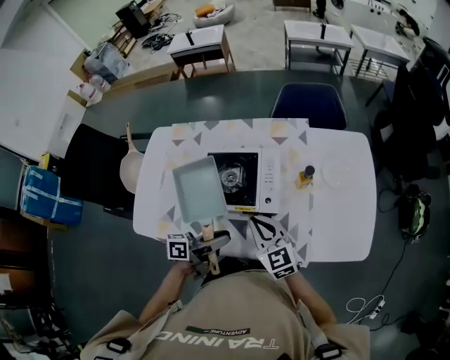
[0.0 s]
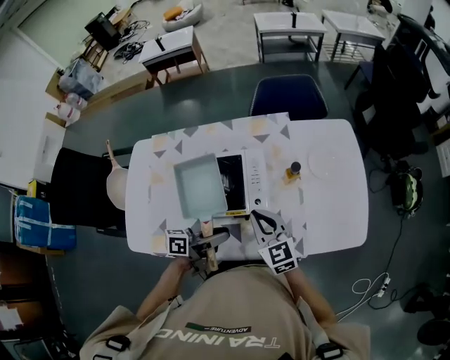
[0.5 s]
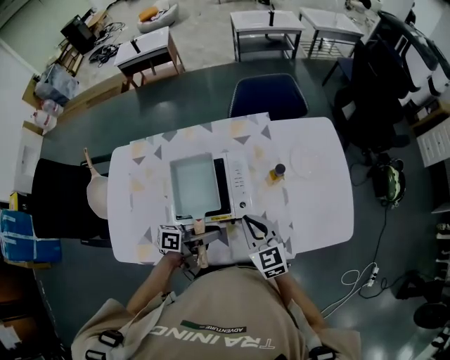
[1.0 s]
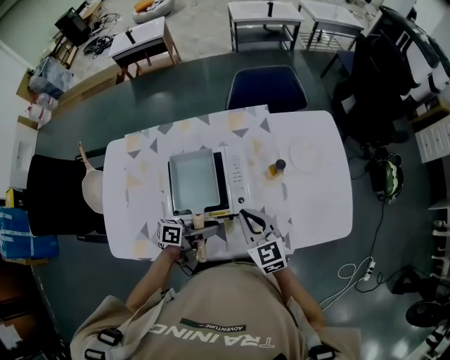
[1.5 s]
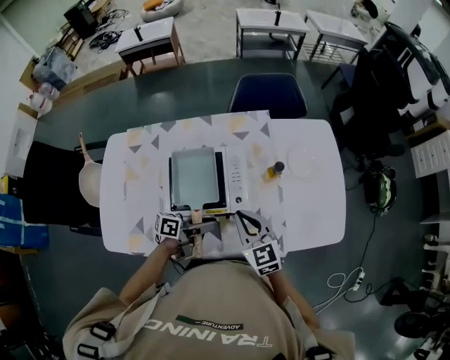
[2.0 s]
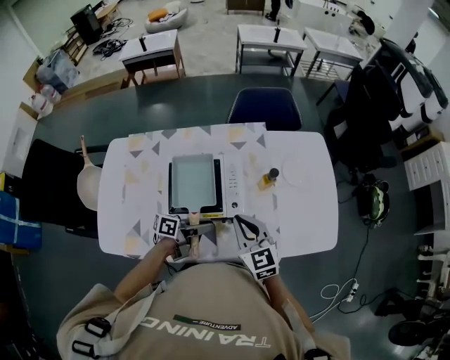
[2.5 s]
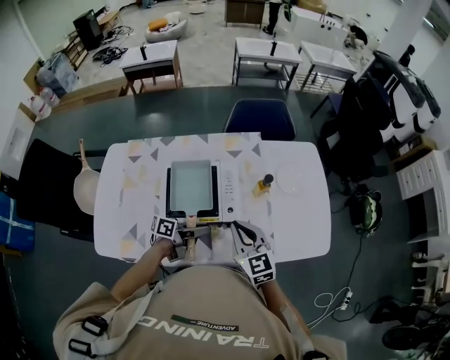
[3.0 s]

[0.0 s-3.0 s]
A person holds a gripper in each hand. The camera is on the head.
0.0 to 1.5 s: The left gripper moves downward and forward, some 10 cm, and turns by roughly 20 degrees. Meanwhile the right gripper ends up about 5 cm from where it was.
1.5 to 3.0 s: The right gripper changes place by about 5 cm.

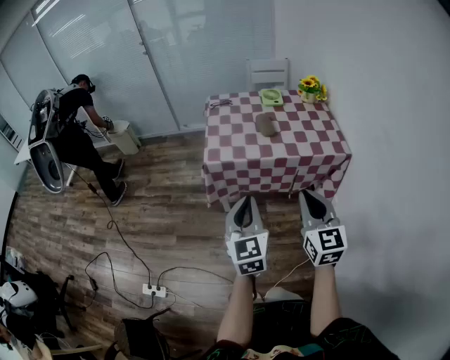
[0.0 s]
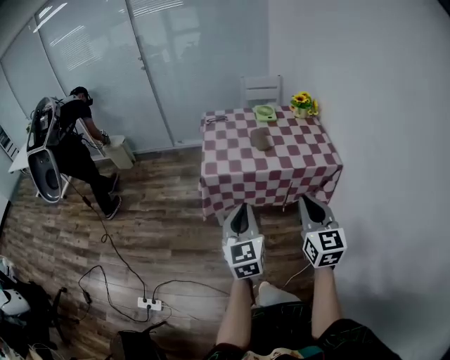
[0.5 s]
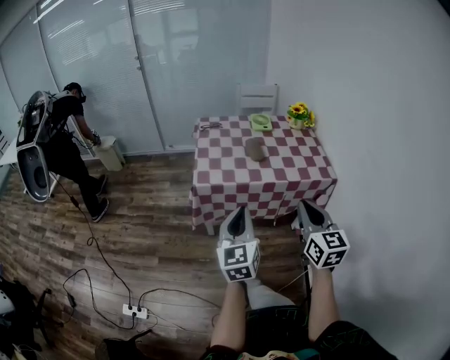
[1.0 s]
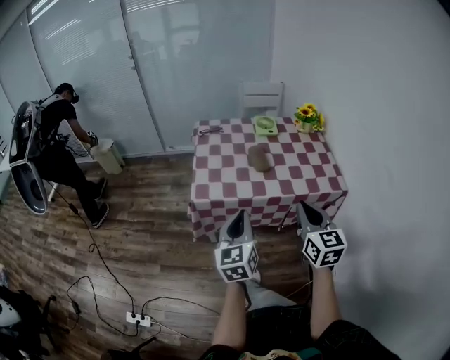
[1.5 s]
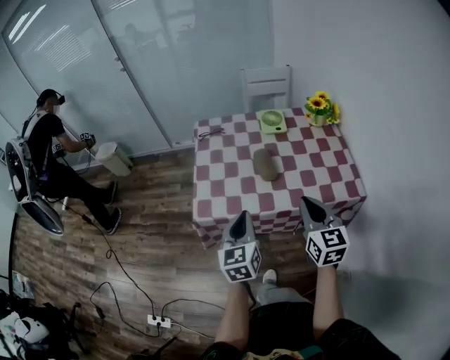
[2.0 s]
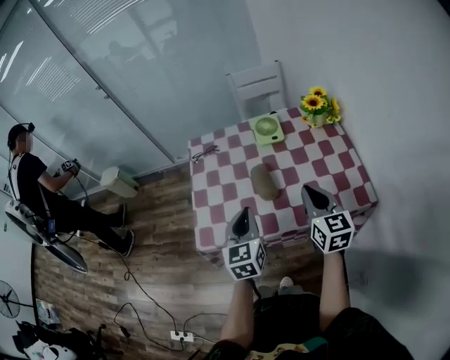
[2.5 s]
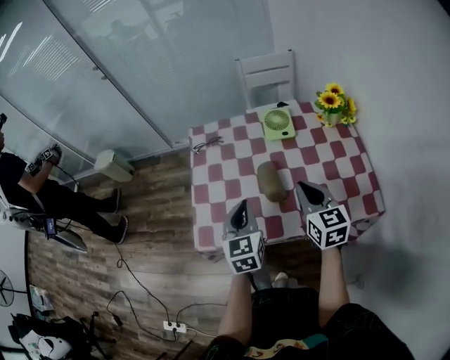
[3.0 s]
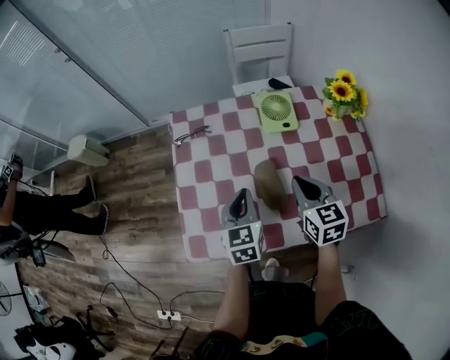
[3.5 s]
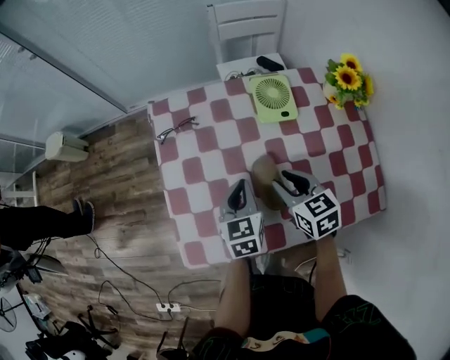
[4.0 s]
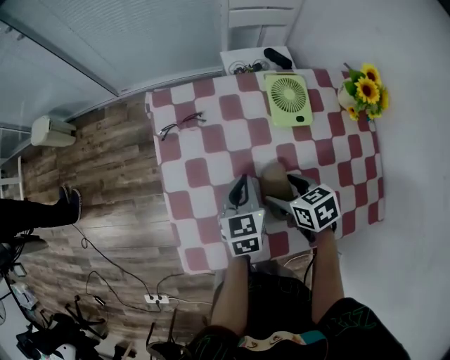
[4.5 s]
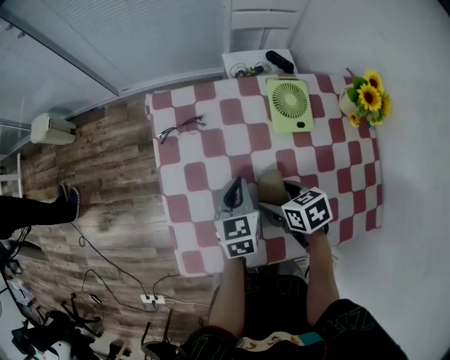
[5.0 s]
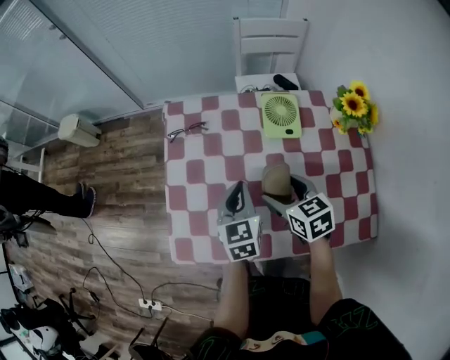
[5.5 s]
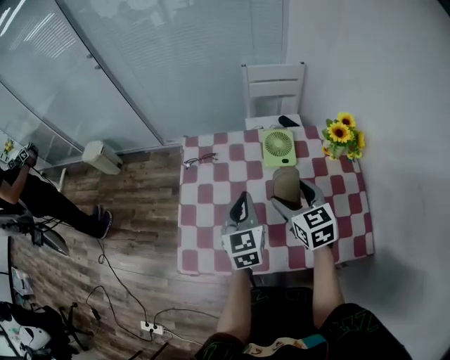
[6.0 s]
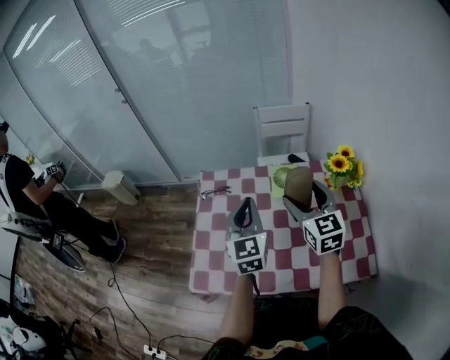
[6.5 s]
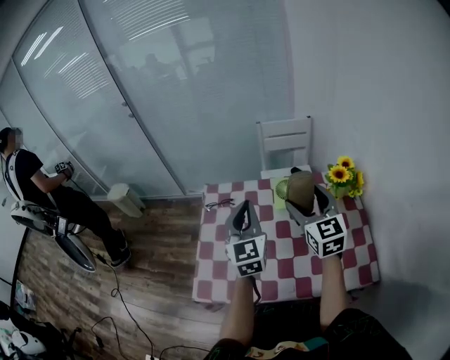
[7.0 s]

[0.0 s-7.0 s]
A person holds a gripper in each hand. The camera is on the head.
0.0 to 2.0 s: The two grippers go some 25 cm forward.
2.0 to 3.5 s: The right gripper heads forward and downward, covering roughly 25 cm, while the left gripper travels forward by approximately 25 cm.
3.5 to 5.0 s: The right gripper shifts approximately 15 cm downward and to the left, changes its angle by some 40 degrees, and opens its fingers. Meanwhile the left gripper is displaced forward and downward by some 10 cm.
5.0 to 7.0 s: The grippers both shift upward by some 30 cm. The right gripper tips its fingers upward by some 50 degrees. Meanwhile the left gripper angles its fingers upward, by roughly 30 degrees.

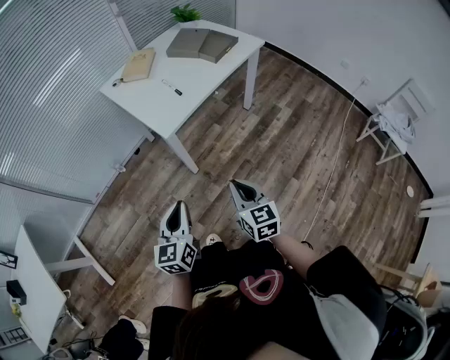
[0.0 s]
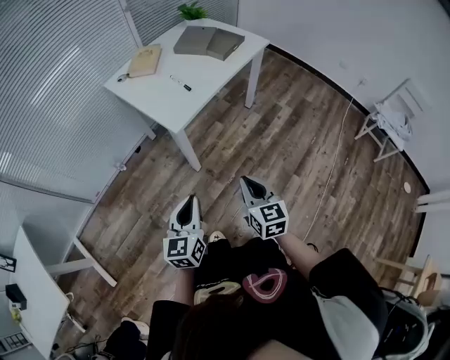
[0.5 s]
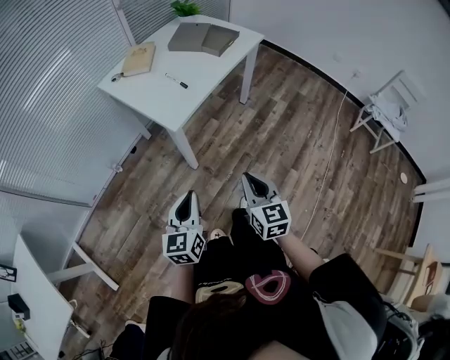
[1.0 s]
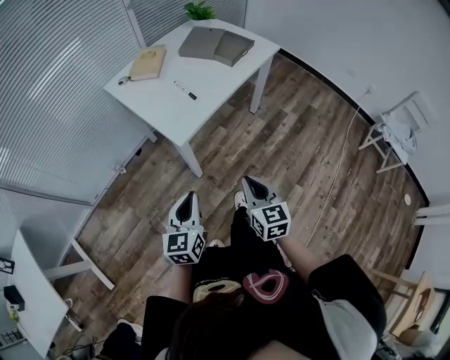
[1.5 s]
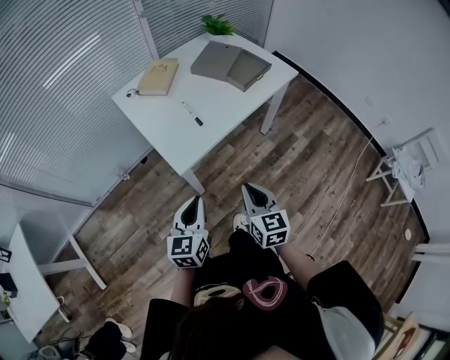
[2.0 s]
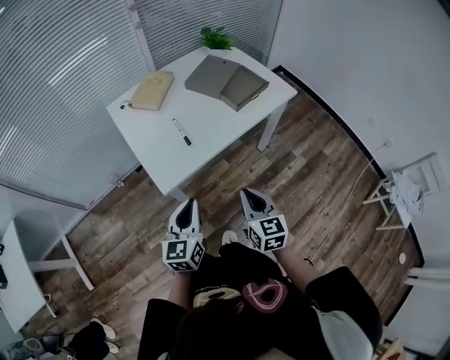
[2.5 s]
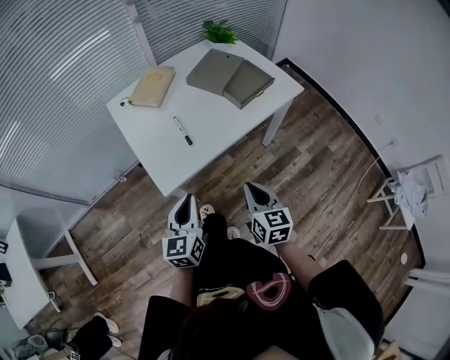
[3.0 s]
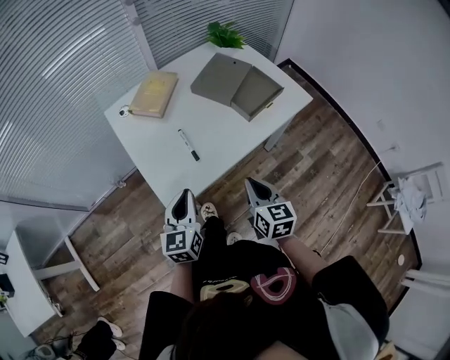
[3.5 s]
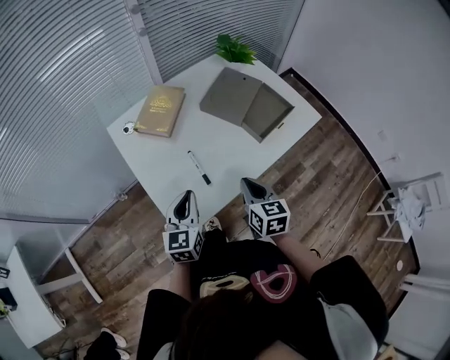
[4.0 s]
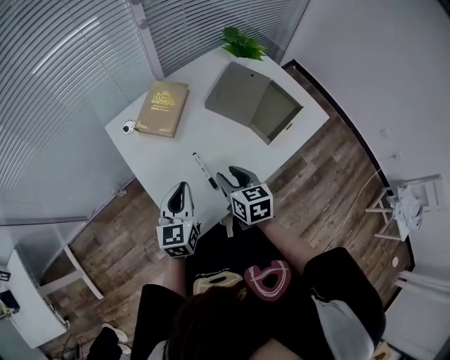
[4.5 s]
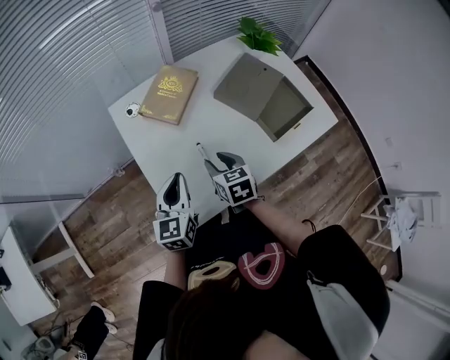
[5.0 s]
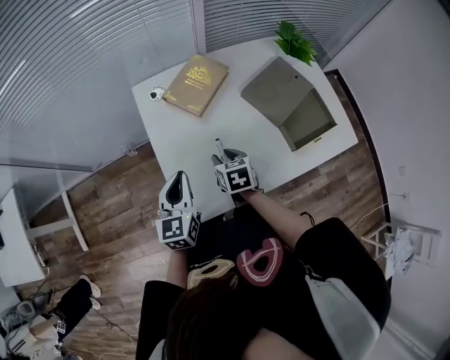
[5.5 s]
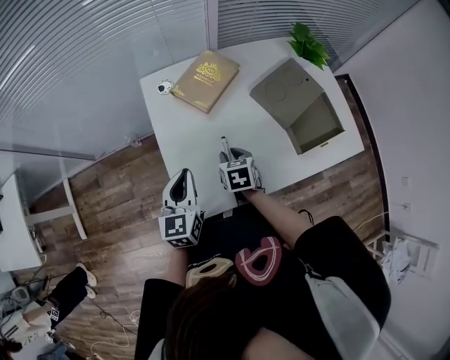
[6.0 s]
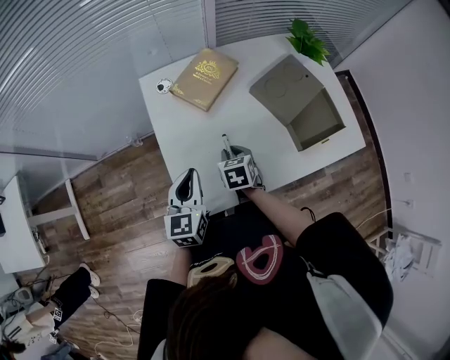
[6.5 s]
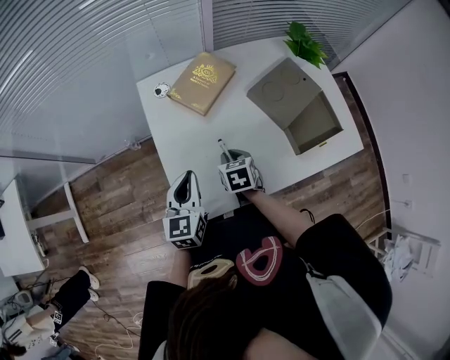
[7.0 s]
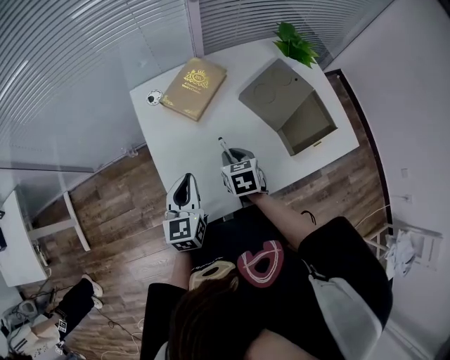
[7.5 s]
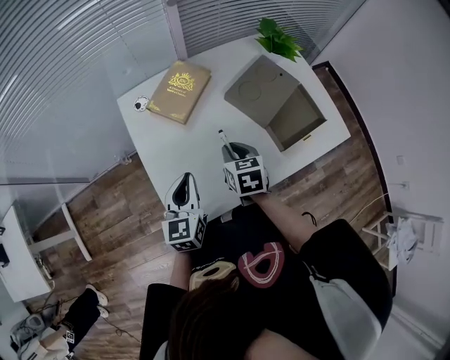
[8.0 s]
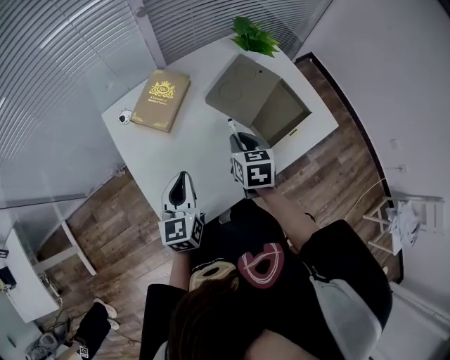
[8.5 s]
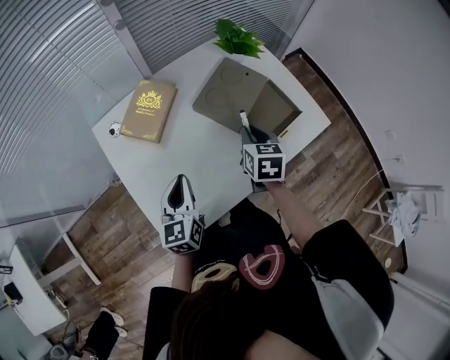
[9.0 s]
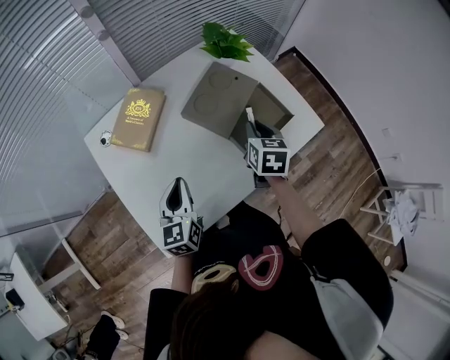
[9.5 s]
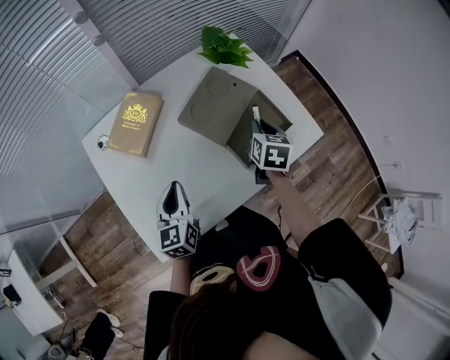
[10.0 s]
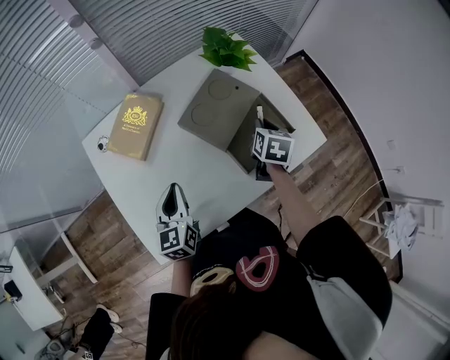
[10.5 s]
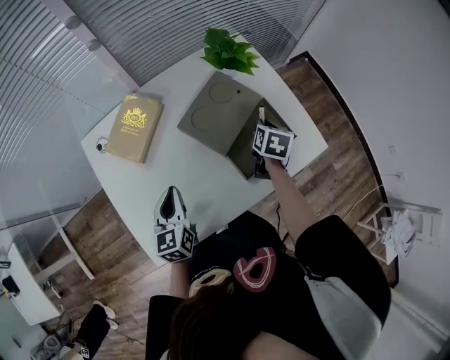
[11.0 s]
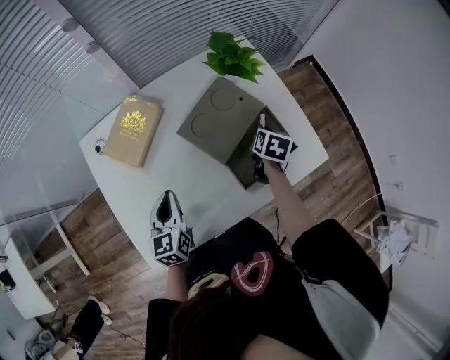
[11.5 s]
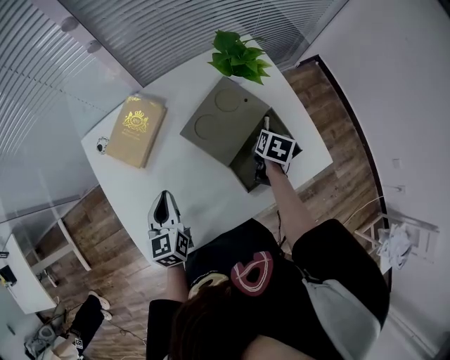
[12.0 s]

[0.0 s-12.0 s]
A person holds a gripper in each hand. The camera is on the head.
0.0 to 2.0 s: Both grippers travel together forward, roughly 20 cm.
2.0 to 4.0 s: Both grippers travel together forward, about 30 cm.
4.0 to 6.0 s: The left gripper is displaced to the left and forward by roughly 10 cm, and changes its angle by about 20 degrees. The right gripper goes some 20 cm forward, to the left and downward, swivels approximately 30 degrees, and opens its fingers.
6.0 to 8.0 s: The right gripper moves upward and to the right, roughly 10 cm. Meanwhile the left gripper goes about 5 cm to the right.
8.0 to 10.0 s: The right gripper travels to the right and forward by roughly 25 cm, and turns by some 30 degrees. Meanwhile the left gripper shifts roughly 10 cm to the right and forward.
10.0 to 12.0 s: The right gripper is displaced downward and forward by approximately 10 cm.

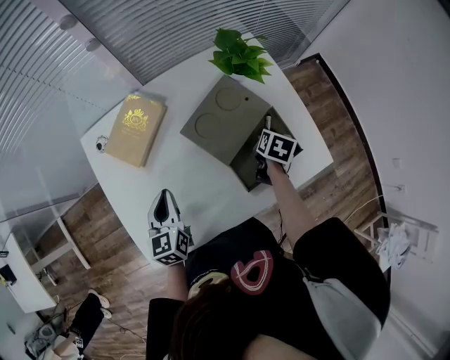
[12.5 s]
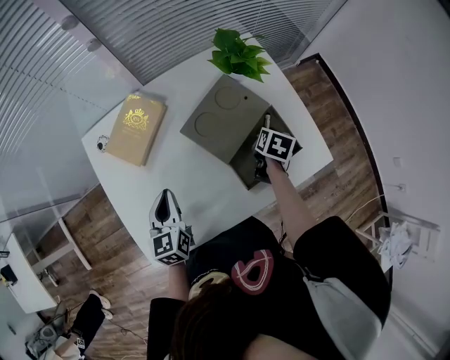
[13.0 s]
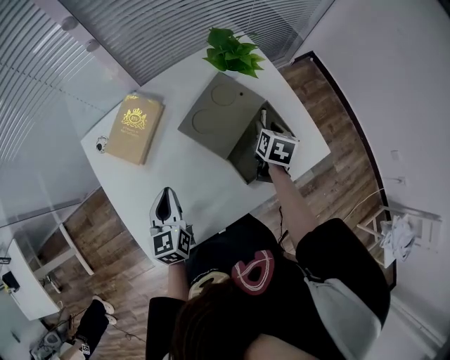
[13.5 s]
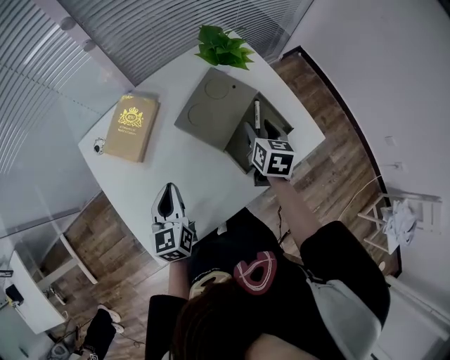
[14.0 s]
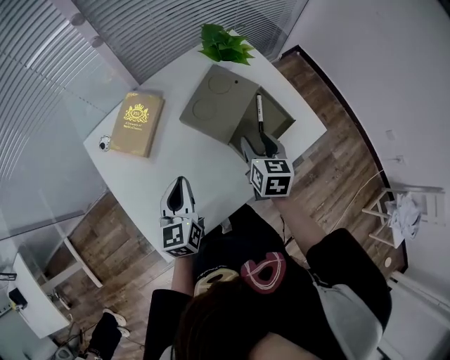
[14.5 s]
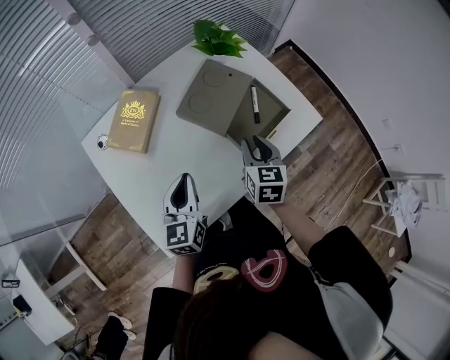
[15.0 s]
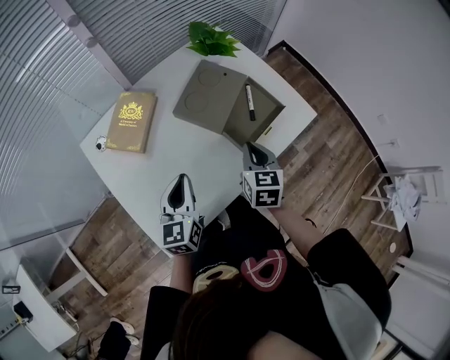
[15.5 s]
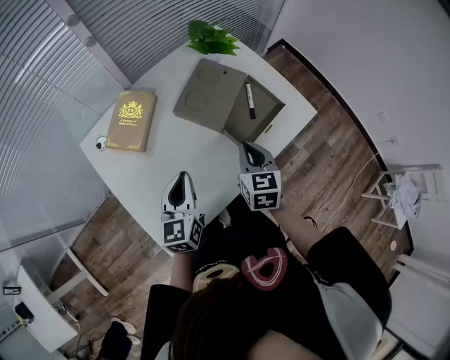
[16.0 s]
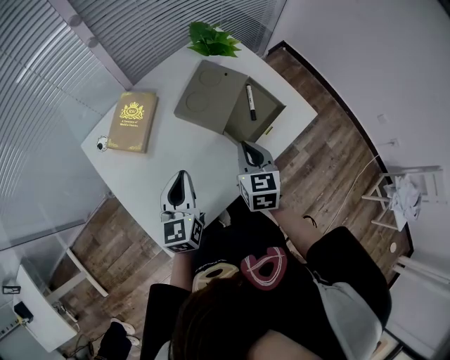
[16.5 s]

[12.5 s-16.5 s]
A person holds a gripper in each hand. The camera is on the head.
12.5 to 14.5 s: The left gripper shifts by some 5 cm; the right gripper travels backward, upward and to the left by roughly 20 cm, swivels about 30 degrees, and opens its fingers.
14.5 to 16.5 s: The right gripper goes about 5 cm backward, and closes.
